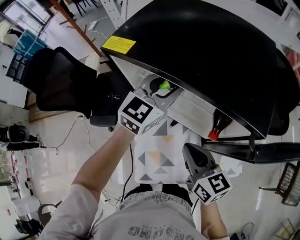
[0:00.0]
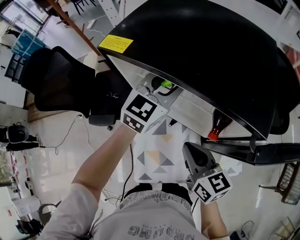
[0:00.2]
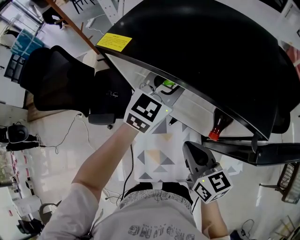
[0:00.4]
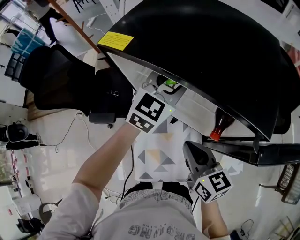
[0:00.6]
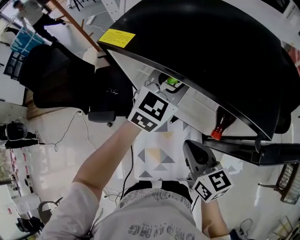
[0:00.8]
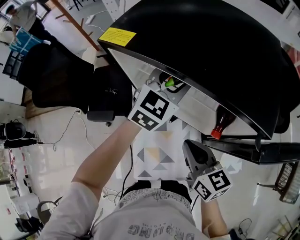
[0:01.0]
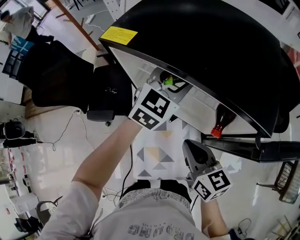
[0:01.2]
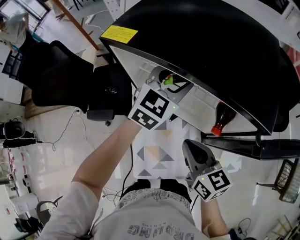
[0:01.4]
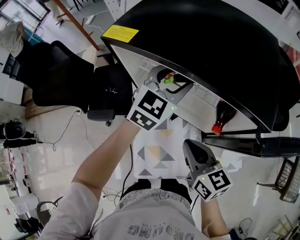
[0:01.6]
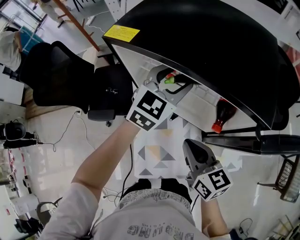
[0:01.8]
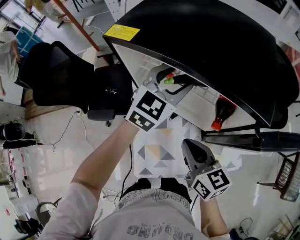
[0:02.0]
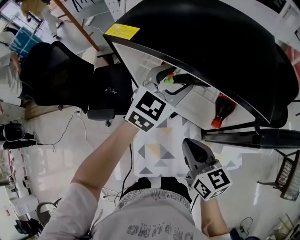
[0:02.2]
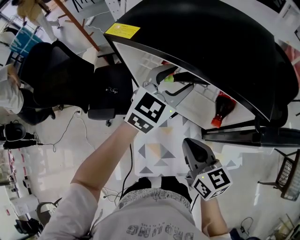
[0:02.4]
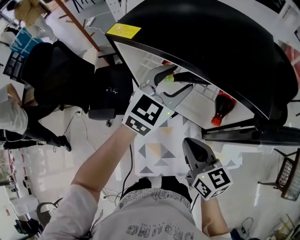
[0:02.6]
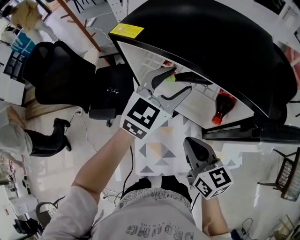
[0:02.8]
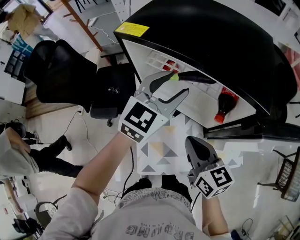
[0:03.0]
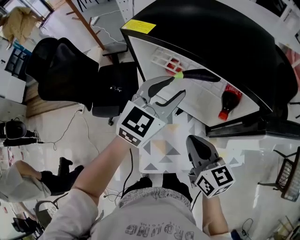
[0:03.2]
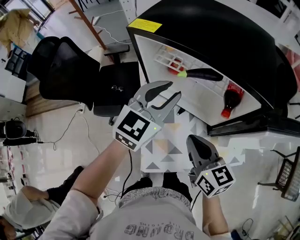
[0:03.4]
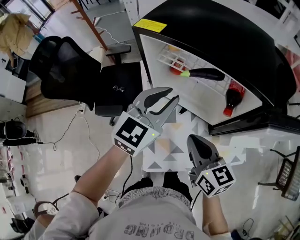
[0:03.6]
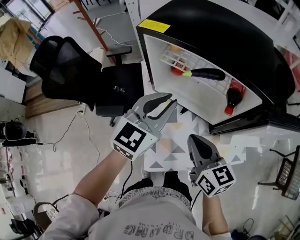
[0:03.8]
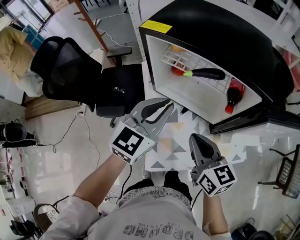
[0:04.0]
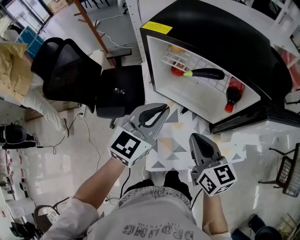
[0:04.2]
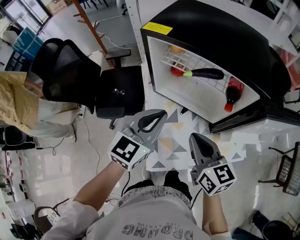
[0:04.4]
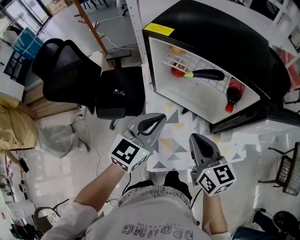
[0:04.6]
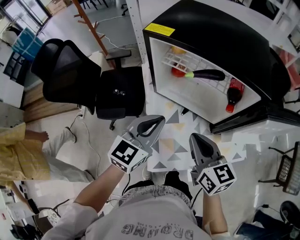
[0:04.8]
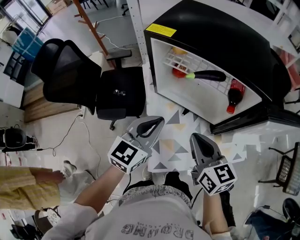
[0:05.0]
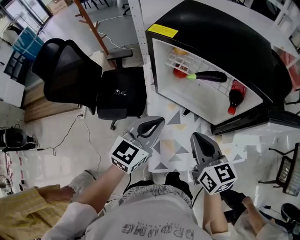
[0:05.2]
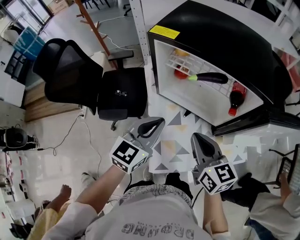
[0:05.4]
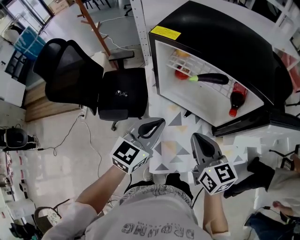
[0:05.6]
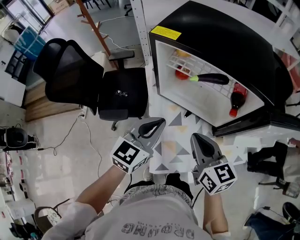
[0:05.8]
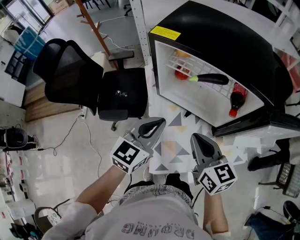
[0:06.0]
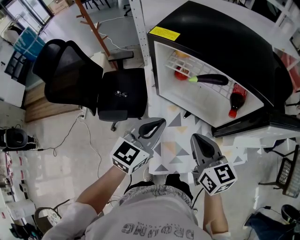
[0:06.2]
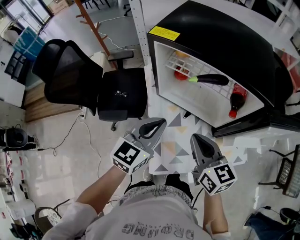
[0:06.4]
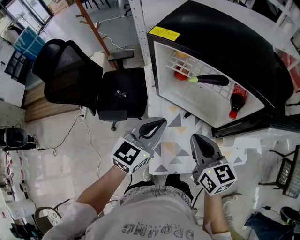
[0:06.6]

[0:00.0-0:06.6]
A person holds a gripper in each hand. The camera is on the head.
0.0 to 1.6 s: The left gripper opens its fingers.
1.6 to 3.2 s: The left gripper moves backward, approximately 10 cm.
3.2 to 5.0 s: The left gripper moves backward and to the left, approximately 15 cm, and closes up. Meanwhile the right gripper moves approximately 5 cm.
5.0 to 6.6 s: The grippers stay close to where they were, moving slightly.

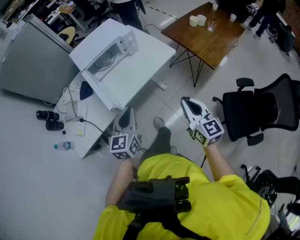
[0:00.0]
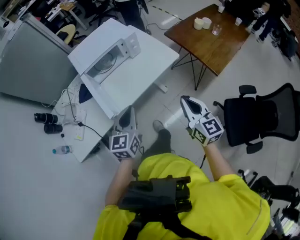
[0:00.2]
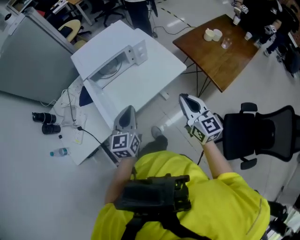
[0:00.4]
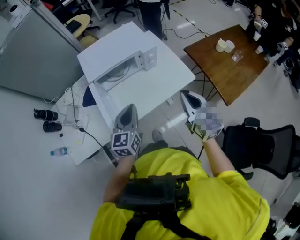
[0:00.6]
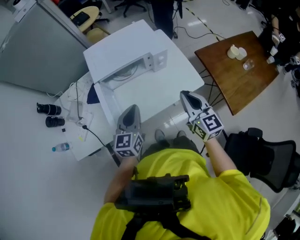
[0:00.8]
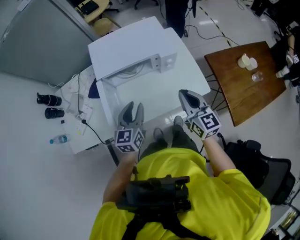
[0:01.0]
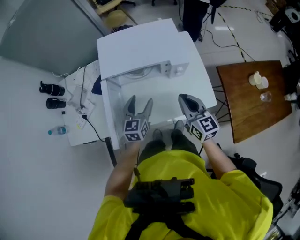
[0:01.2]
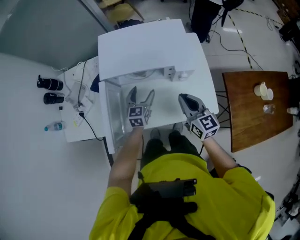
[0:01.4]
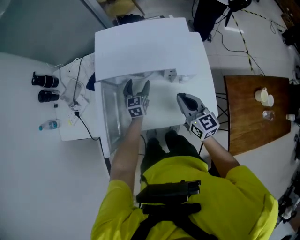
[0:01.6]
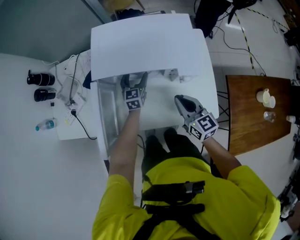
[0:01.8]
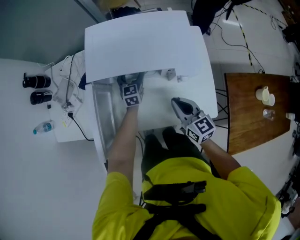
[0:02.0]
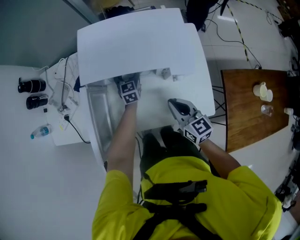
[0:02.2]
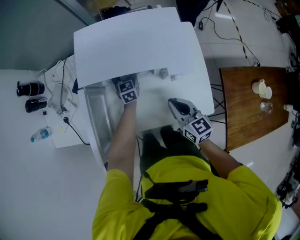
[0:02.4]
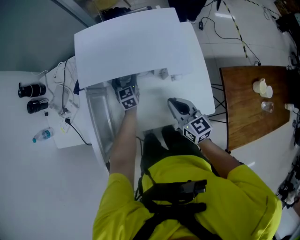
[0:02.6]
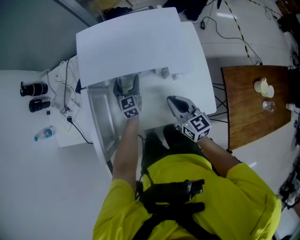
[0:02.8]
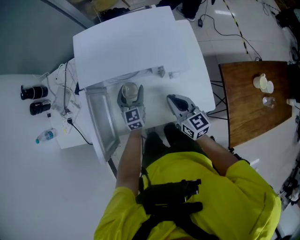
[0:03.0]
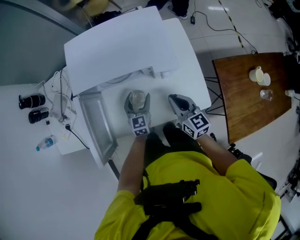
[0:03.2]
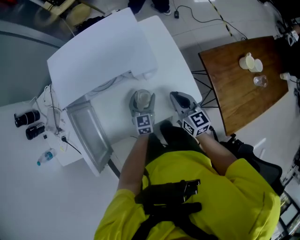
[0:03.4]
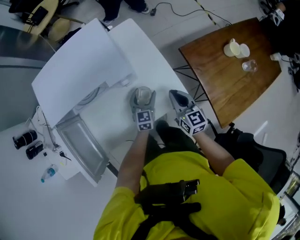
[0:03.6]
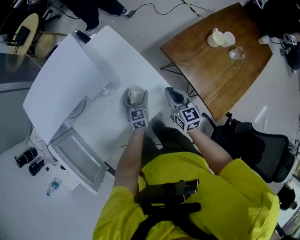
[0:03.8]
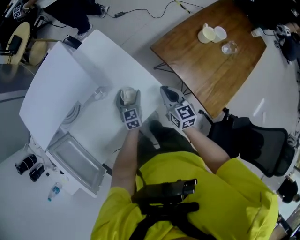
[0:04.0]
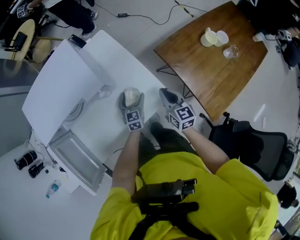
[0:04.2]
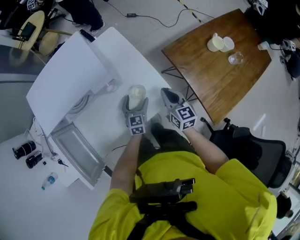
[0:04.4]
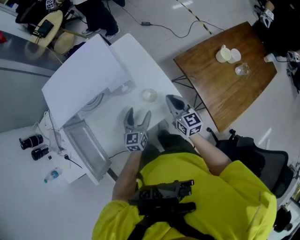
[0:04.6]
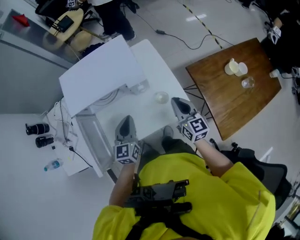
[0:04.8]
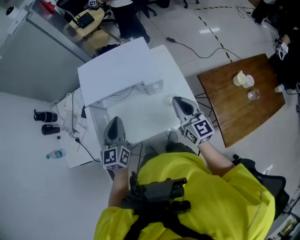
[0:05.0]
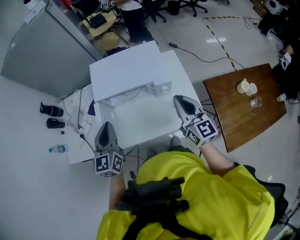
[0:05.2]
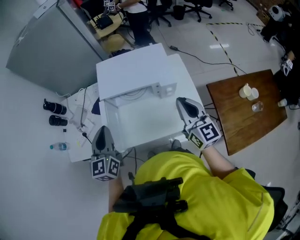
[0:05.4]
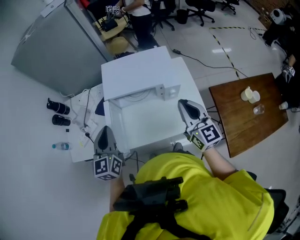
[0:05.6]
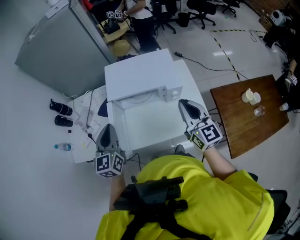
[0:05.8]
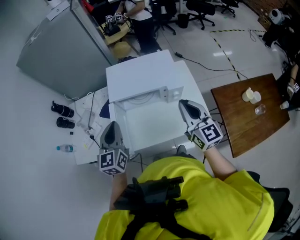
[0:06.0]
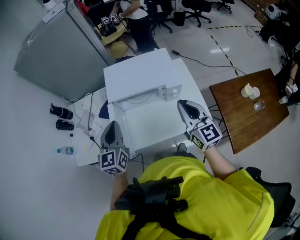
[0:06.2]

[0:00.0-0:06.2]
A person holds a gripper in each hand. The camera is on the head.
0.0 to 1.6 s: The pair of grippers is taken about 50 cm. The right gripper swivels roughly 40 degrees. Meanwhile the left gripper rotates approximately 40 degrees, and opens.
1.6 to 3.2 s: The right gripper travels downward by roughly 5 cm, while the left gripper moves backward and to the right, approximately 10 cm.
3.2 to 4.6 s: The left gripper reaches about 10 cm downward, then returns, and swivels approximately 30 degrees; the right gripper ends up some 15 cm from where it was, and turns by approximately 20 degrees.
4.6 to 6.2 s: The left gripper changes place by about 40 cm, changes its angle by about 30 degrees, and closes up; the right gripper is displaced upward by roughly 25 cm, and rotates approximately 30 degrees.

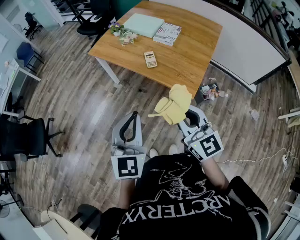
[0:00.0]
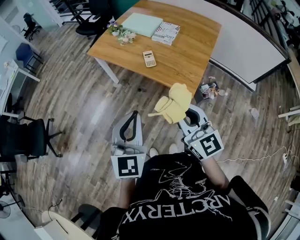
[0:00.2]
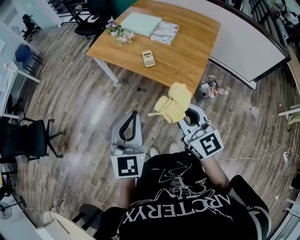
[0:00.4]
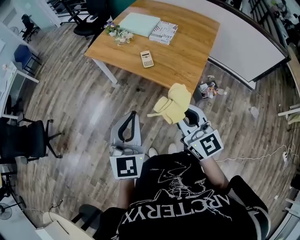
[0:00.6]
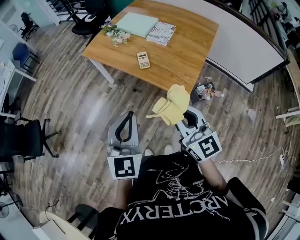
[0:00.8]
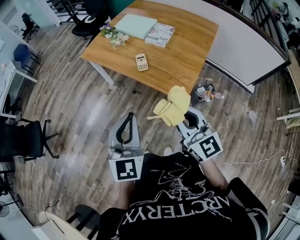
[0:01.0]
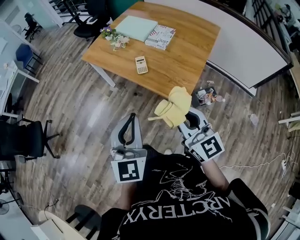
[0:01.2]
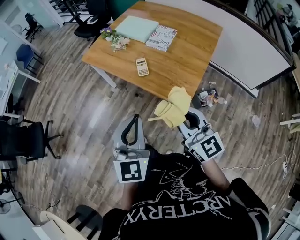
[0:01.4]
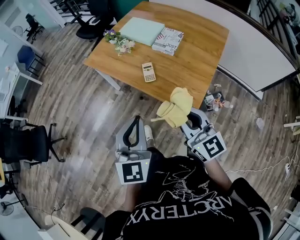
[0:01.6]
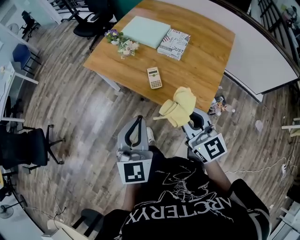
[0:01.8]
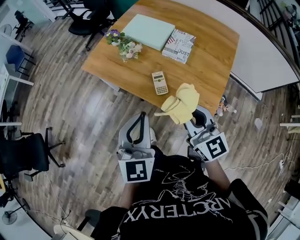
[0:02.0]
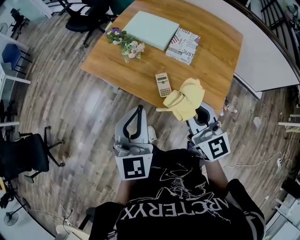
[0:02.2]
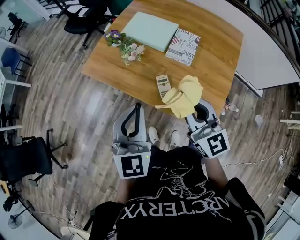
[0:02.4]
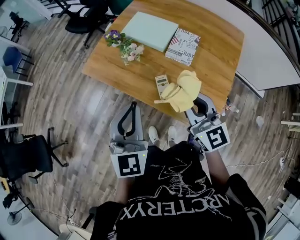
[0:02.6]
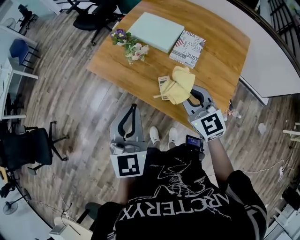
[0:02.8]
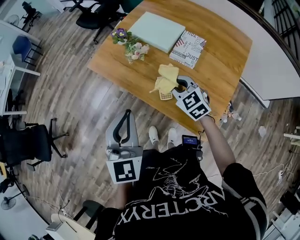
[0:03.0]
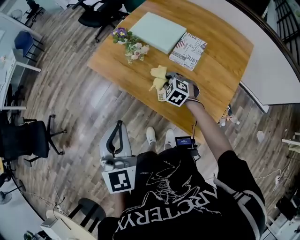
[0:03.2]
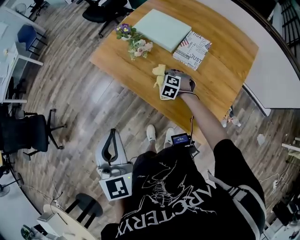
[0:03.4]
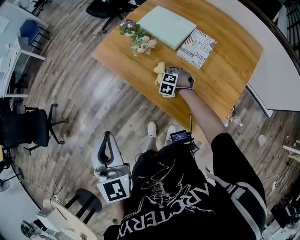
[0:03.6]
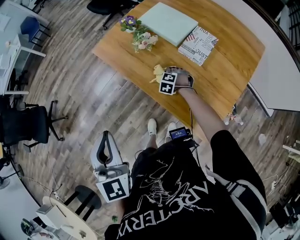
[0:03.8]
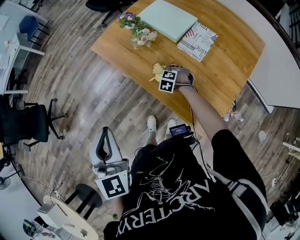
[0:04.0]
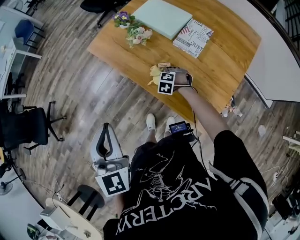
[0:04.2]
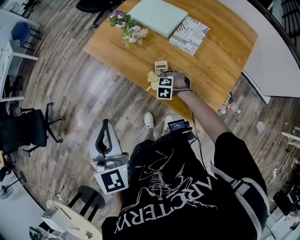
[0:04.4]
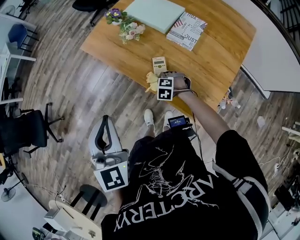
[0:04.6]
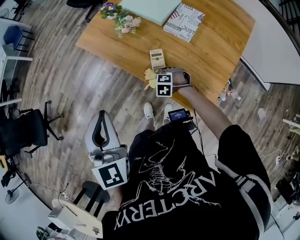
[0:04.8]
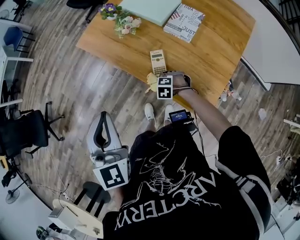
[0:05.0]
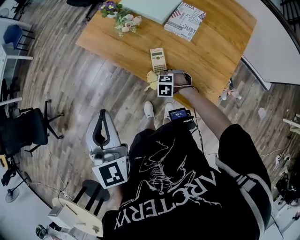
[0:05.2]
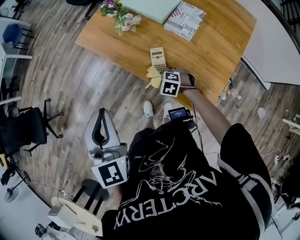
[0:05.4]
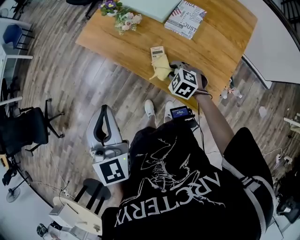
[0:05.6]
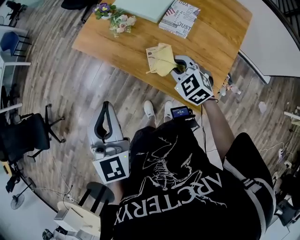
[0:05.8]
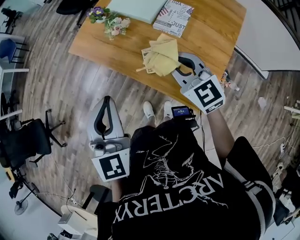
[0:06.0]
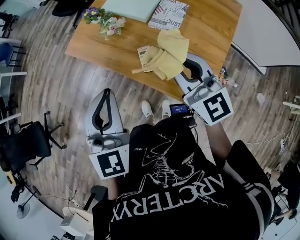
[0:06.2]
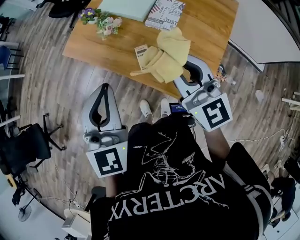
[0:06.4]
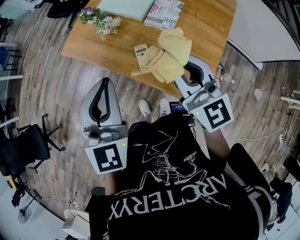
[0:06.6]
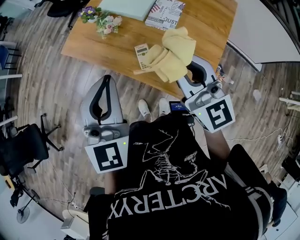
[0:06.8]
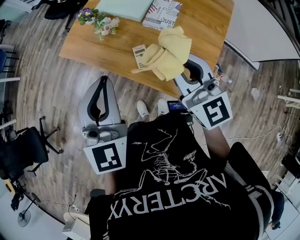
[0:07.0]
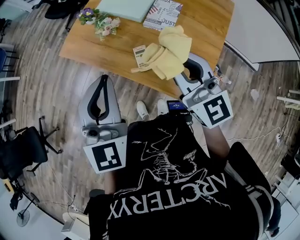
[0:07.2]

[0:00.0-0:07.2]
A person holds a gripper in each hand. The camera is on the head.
0.0 to 1.4 s: The two grippers go approximately 10 cm to the right and forward.
1.4 to 2.8 s: The two grippers go some 30 cm forward.
2.8 to 4.4 s: The right gripper travels downward by approximately 35 cm, and points its fingers some 60 degrees further downward; the left gripper shifts some 10 cm backward and to the left.
4.4 to 5.8 s: The right gripper moves upward, some 20 cm, and points its fingers roughly 30 degrees further upward.
5.8 to 7.2 s: The left gripper moves to the right, roughly 5 cm. Meanwhile the right gripper goes about 20 cm upward, and tilts its fingers approximately 40 degrees upward.

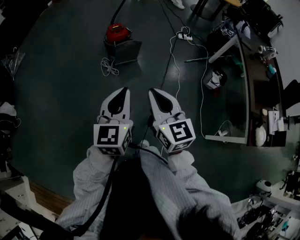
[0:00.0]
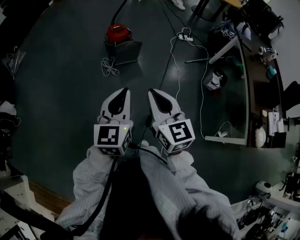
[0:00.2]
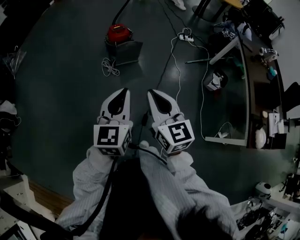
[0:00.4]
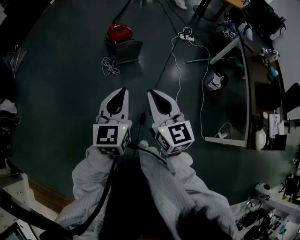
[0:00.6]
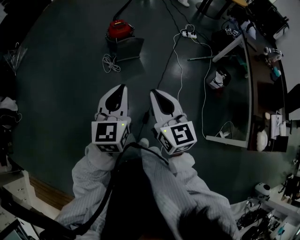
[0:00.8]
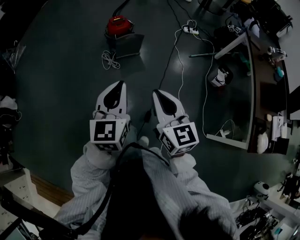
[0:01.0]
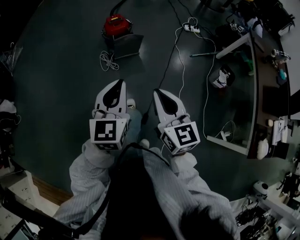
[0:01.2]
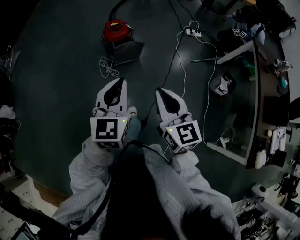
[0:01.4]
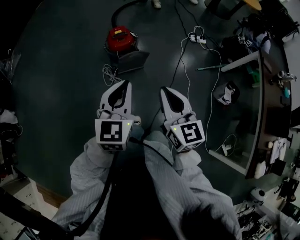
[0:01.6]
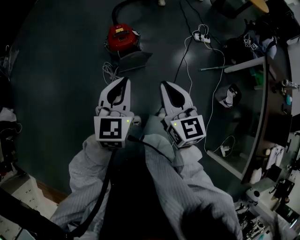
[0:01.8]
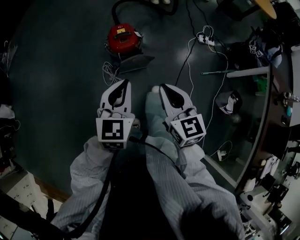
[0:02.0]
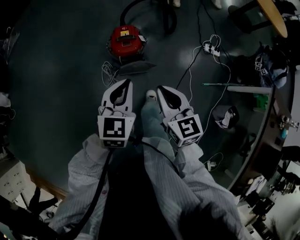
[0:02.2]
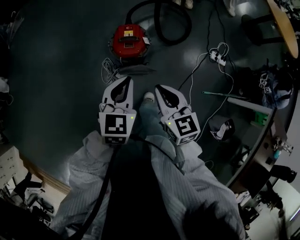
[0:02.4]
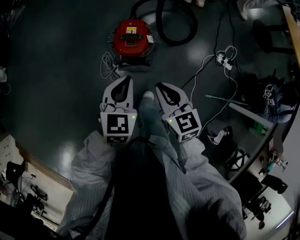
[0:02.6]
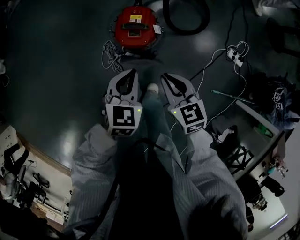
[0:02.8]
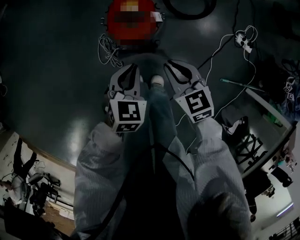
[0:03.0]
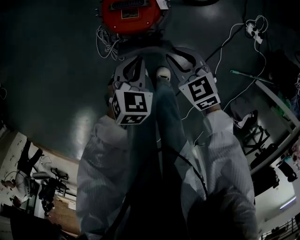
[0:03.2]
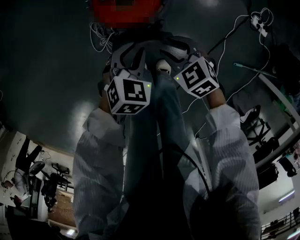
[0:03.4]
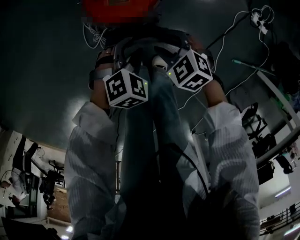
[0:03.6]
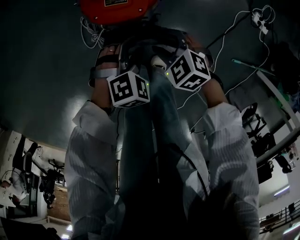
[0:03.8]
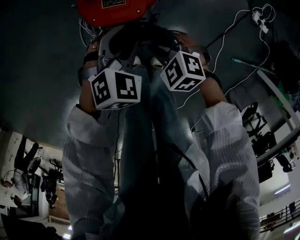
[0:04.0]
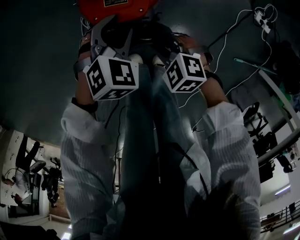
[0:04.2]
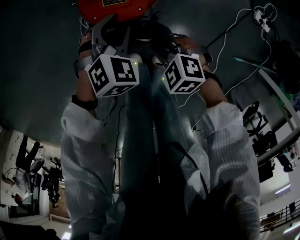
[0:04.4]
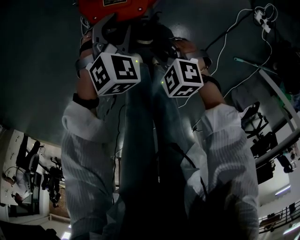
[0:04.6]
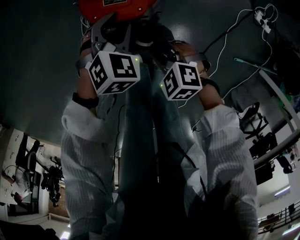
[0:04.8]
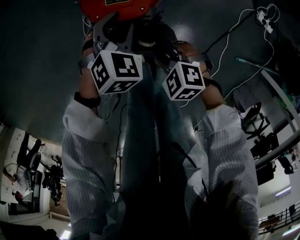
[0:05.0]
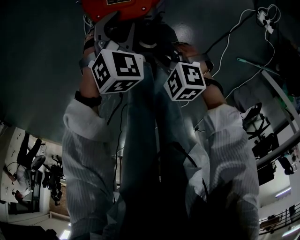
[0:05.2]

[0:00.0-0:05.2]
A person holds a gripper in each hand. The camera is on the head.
0.0 to 1.8 s: Both grippers are carried forward, about 40 cm.
1.8 to 3.4 s: Both grippers travel together downward, approximately 60 cm. The right gripper tilts its fingers some 40 degrees downward, and opens up. Meanwhile the left gripper tips its fingers downward by about 40 degrees.
3.4 to 5.2 s: The left gripper travels forward by roughly 10 cm, and opens up, while the right gripper goes some 5 cm downward, rotates some 20 degrees, and closes up.
